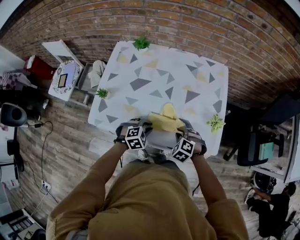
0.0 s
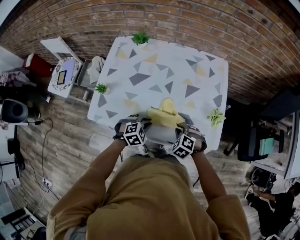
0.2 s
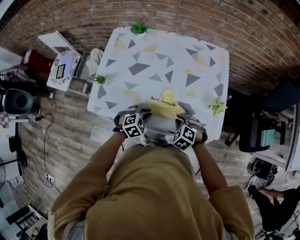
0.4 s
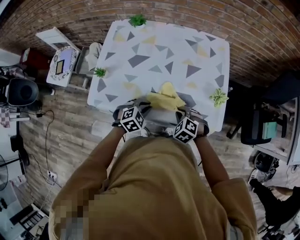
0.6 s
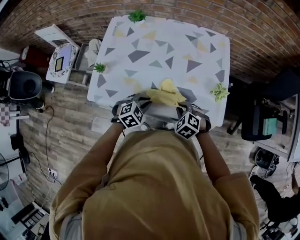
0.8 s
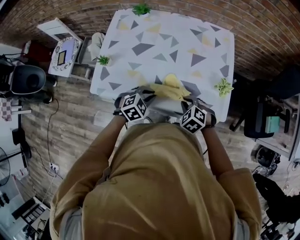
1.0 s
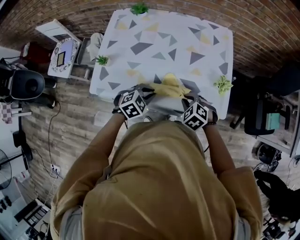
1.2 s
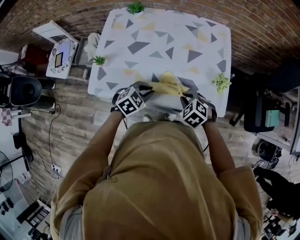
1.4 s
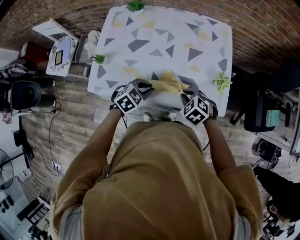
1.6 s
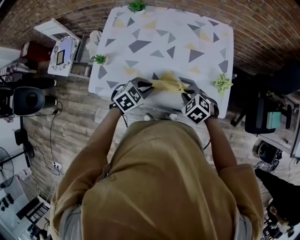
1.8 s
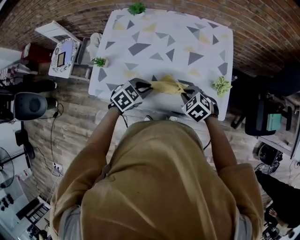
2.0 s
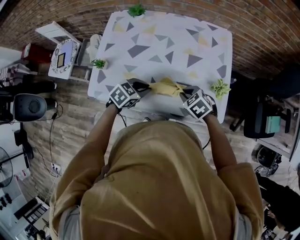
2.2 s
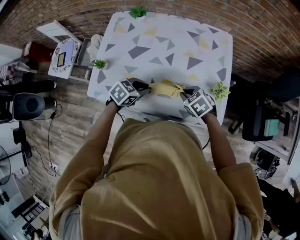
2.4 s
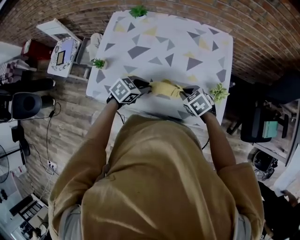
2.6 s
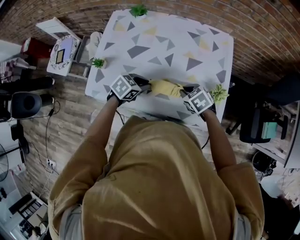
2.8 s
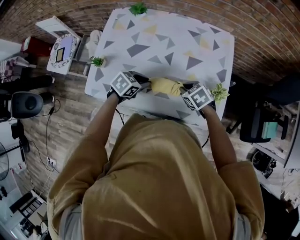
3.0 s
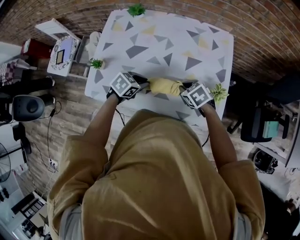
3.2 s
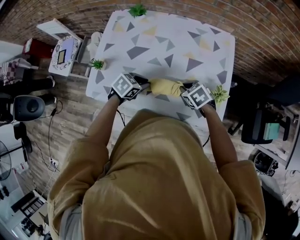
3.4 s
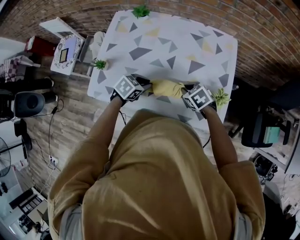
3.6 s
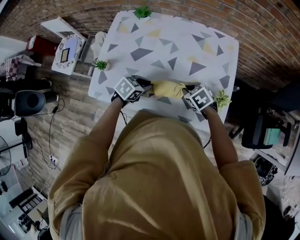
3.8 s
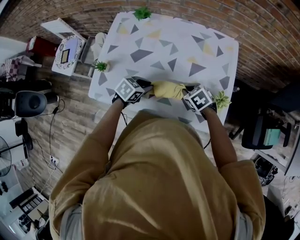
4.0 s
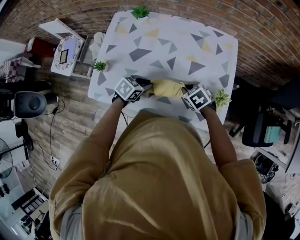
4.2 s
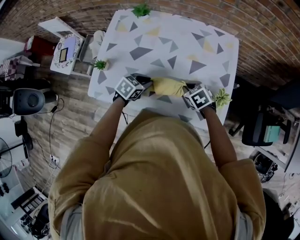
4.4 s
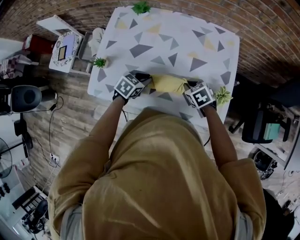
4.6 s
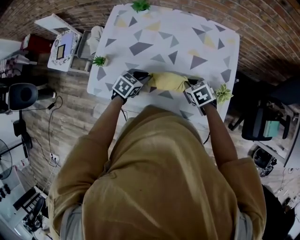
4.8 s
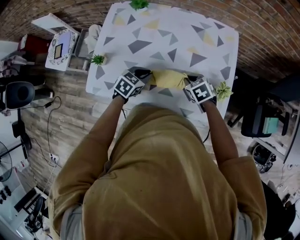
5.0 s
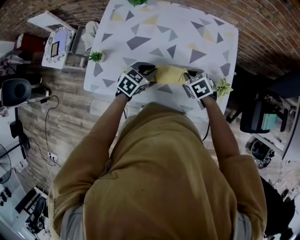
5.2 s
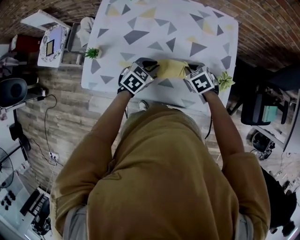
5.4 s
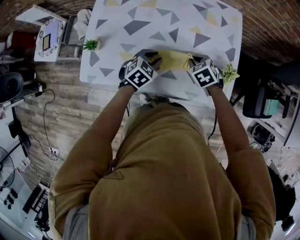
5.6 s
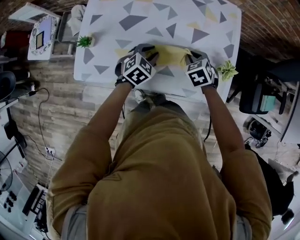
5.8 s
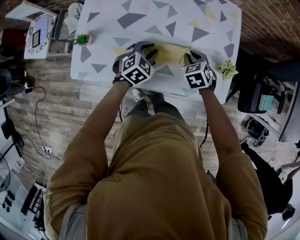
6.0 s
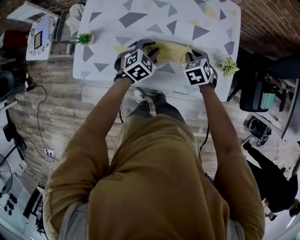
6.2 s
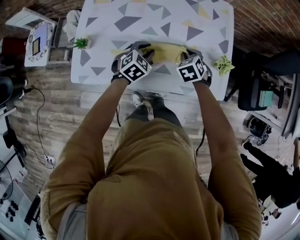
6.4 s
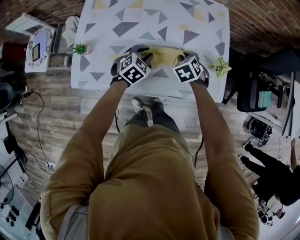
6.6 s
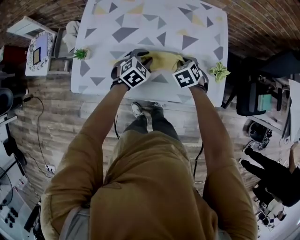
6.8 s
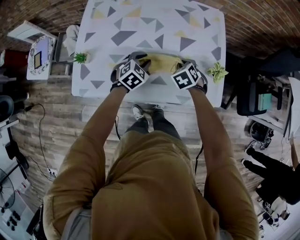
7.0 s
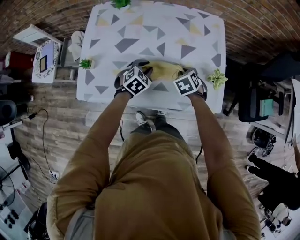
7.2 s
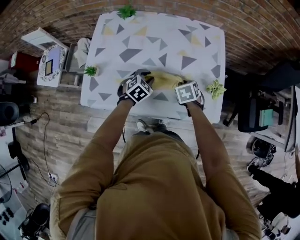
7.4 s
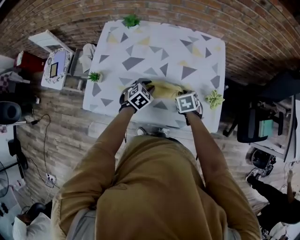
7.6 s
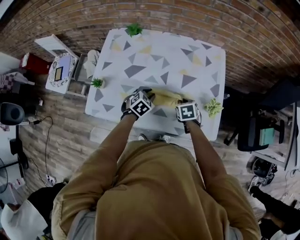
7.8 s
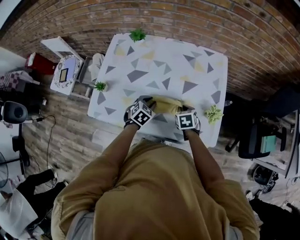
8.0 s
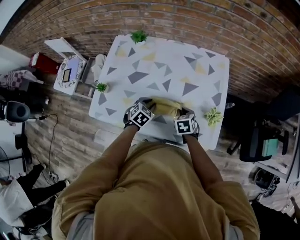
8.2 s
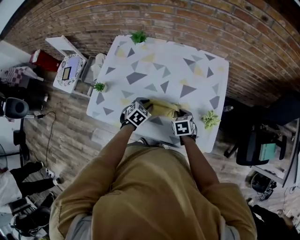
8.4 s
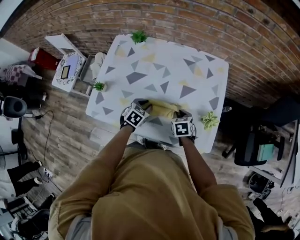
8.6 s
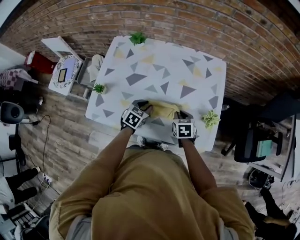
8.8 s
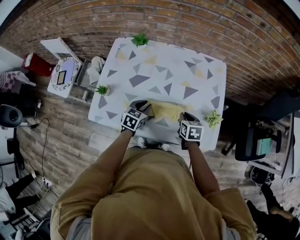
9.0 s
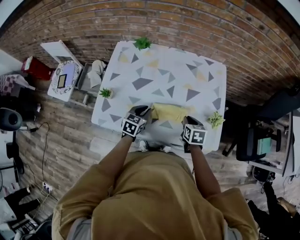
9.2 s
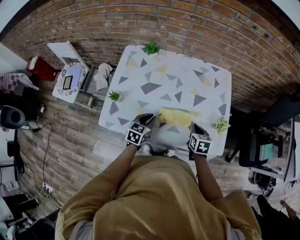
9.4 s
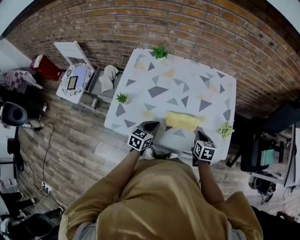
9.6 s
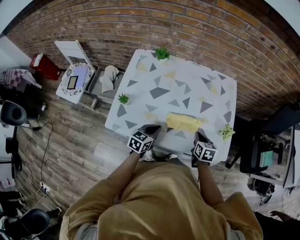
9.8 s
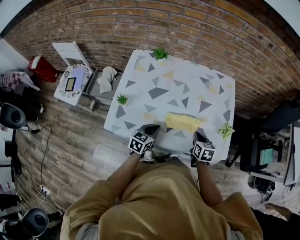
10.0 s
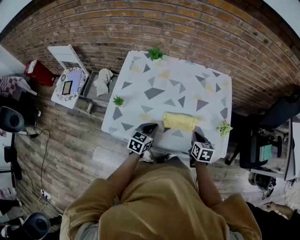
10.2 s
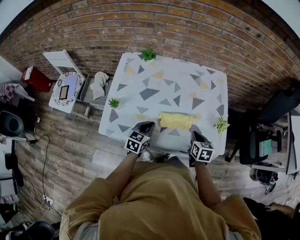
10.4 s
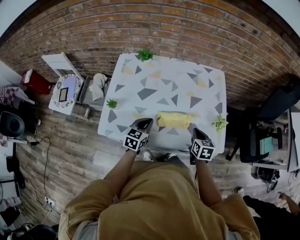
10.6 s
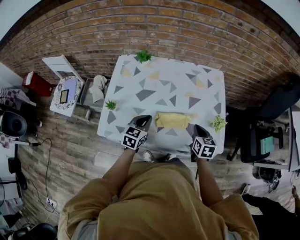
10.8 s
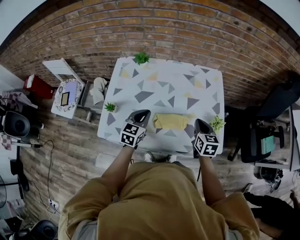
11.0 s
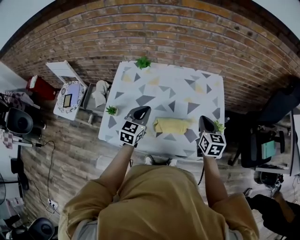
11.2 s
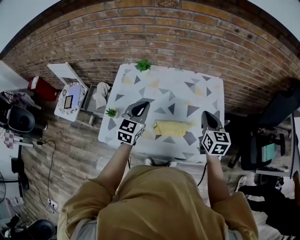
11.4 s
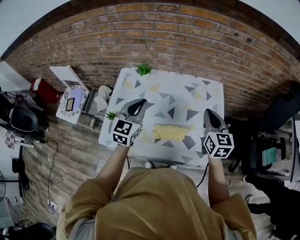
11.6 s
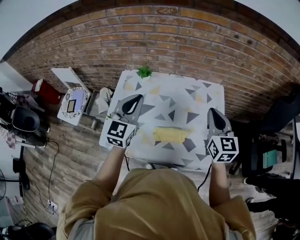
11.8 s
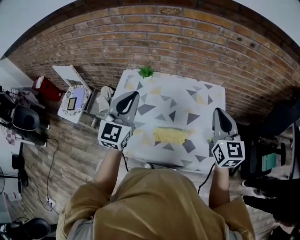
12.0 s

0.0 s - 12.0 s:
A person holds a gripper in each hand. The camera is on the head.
0.0 s - 1.6 s: The left gripper heads upward, covering about 5 cm.
1.6 s - 3.0 s: The two grippers go roughly 10 cm forward.
3.0 s - 4.4 s: The grippers stay close to where they were, moving slightly.
4.4 s - 6.0 s: The right gripper changes its angle by approximately 20 degrees. The left gripper changes its angle by roughly 20 degrees.
6.0 s - 7.6 s: There are only small adjustments of the grippers.
7.6 s - 9.0 s: The right gripper goes some 5 cm upward, and changes its angle by roughly 20 degrees. Meanwhile the left gripper ends up approximately 5 cm from where it was, and changes its angle by roughly 30 degrees.
9.0 s - 10.4 s: The grippers both shift backward by some 5 cm.
10.4 s - 12.0 s: Both grippers travel together upward, approximately 35 cm. The left gripper tips its fingers upward by approximately 30 degrees, while the right gripper tilts its fingers some 40 degrees upward.

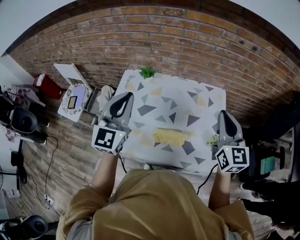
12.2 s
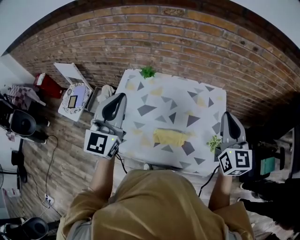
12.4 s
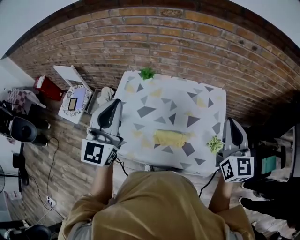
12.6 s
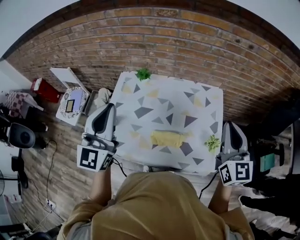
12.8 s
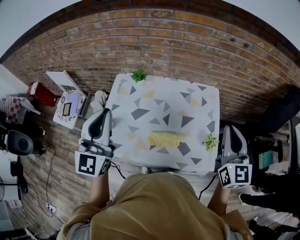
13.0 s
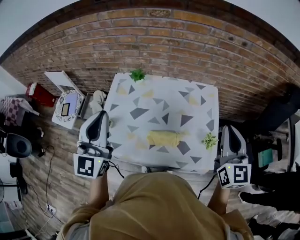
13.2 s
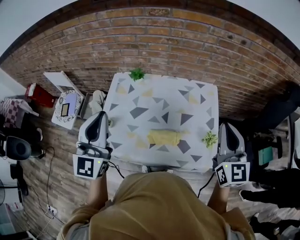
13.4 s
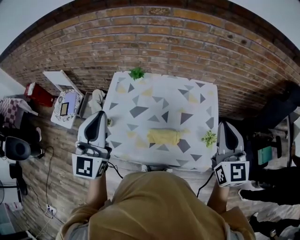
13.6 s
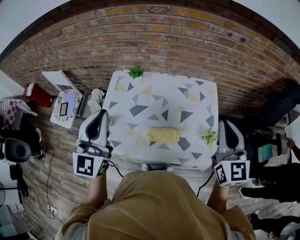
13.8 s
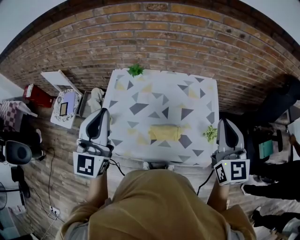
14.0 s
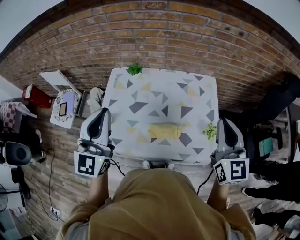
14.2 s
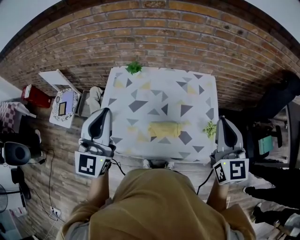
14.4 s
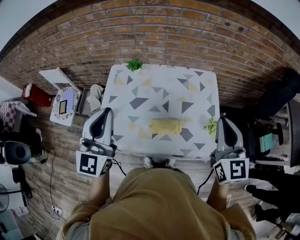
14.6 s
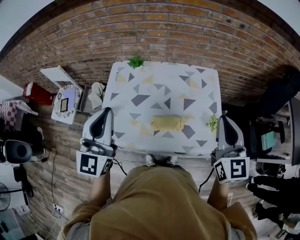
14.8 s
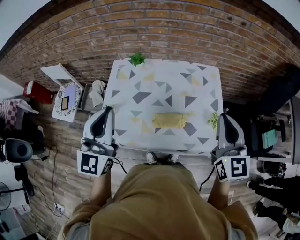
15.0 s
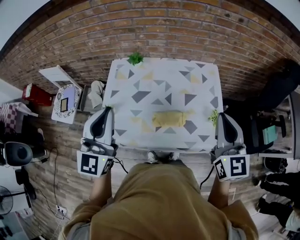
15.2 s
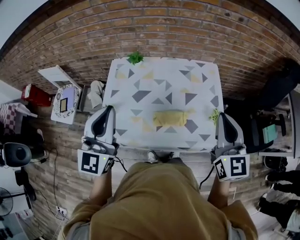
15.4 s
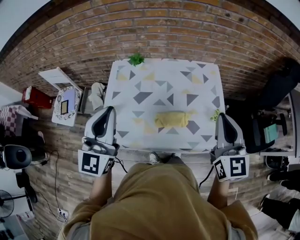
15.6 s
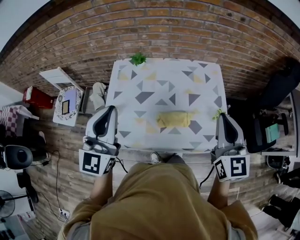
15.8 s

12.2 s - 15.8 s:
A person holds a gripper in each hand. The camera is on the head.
12.2 s - 14.0 s: The grippers both shift backward by approximately 5 cm.
14.0 s - 15.8 s: The right gripper shifts roughly 5 cm backward.

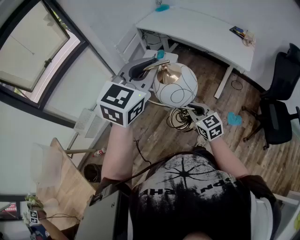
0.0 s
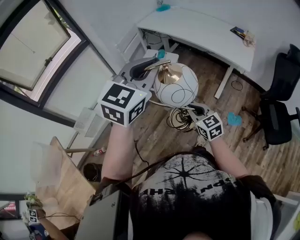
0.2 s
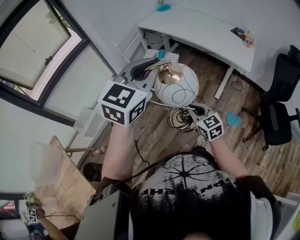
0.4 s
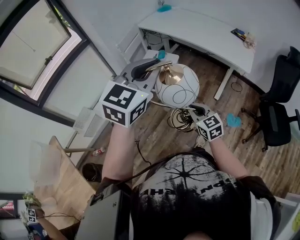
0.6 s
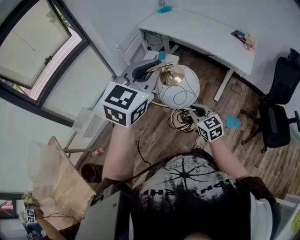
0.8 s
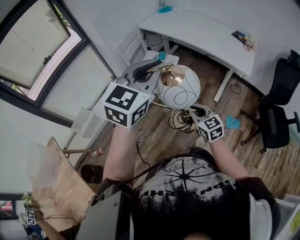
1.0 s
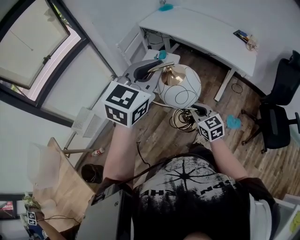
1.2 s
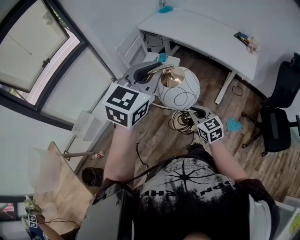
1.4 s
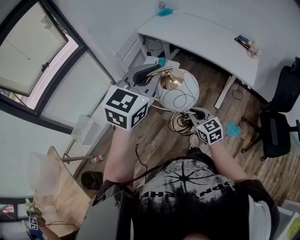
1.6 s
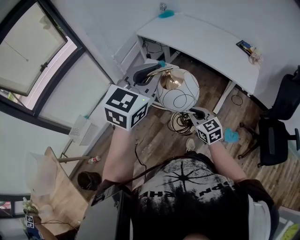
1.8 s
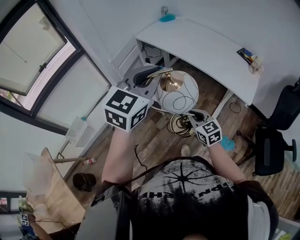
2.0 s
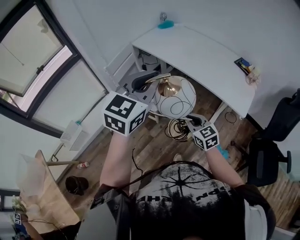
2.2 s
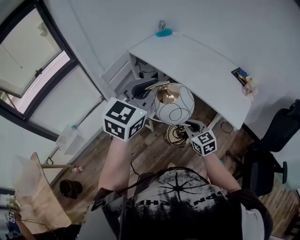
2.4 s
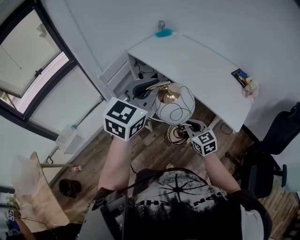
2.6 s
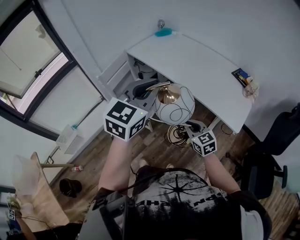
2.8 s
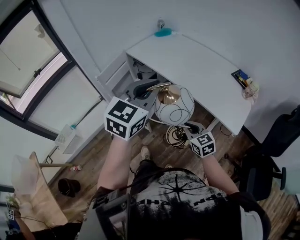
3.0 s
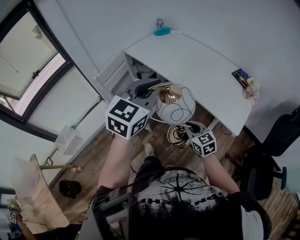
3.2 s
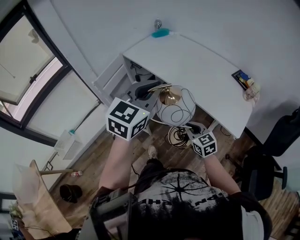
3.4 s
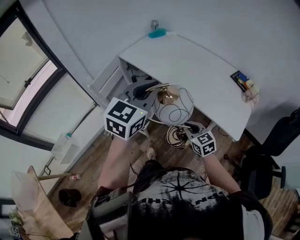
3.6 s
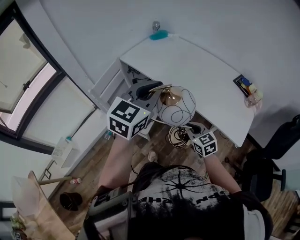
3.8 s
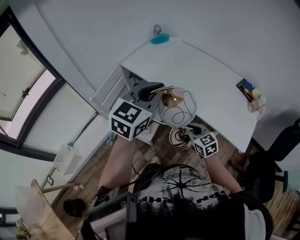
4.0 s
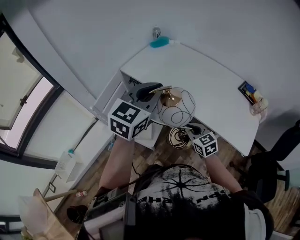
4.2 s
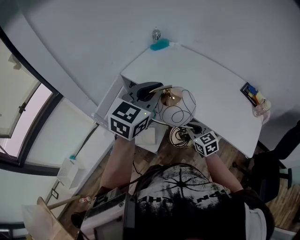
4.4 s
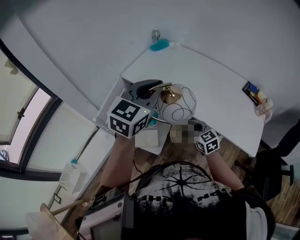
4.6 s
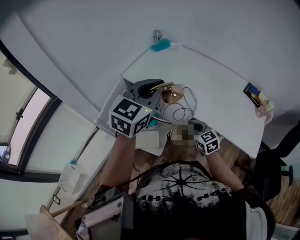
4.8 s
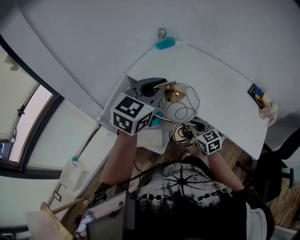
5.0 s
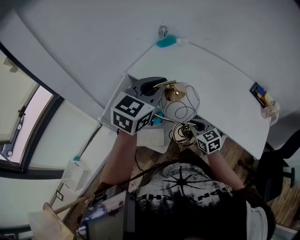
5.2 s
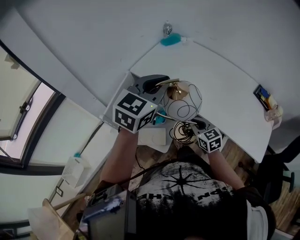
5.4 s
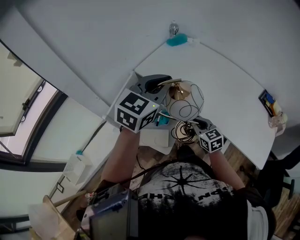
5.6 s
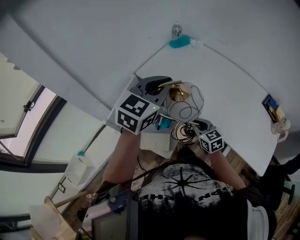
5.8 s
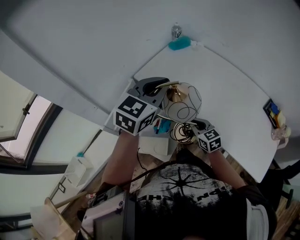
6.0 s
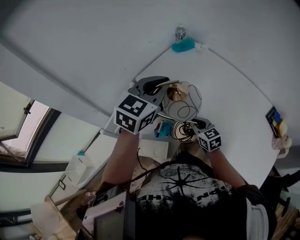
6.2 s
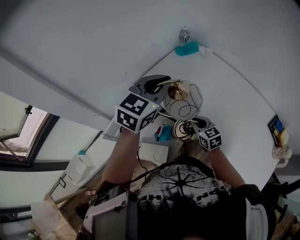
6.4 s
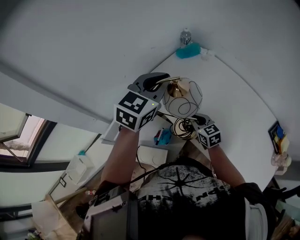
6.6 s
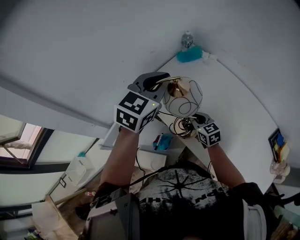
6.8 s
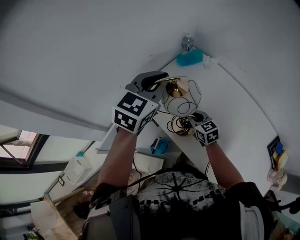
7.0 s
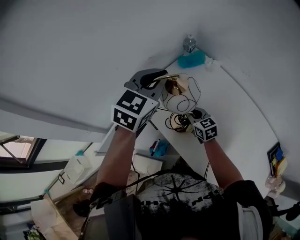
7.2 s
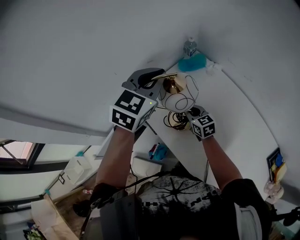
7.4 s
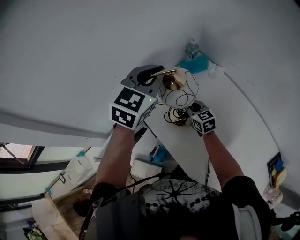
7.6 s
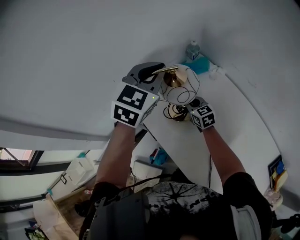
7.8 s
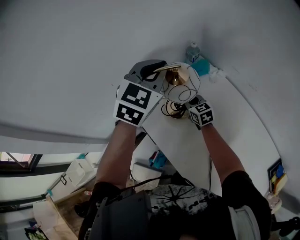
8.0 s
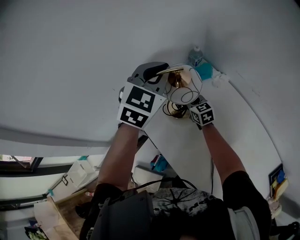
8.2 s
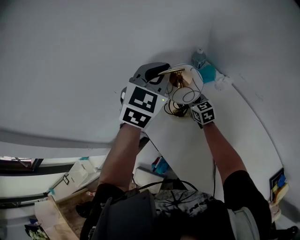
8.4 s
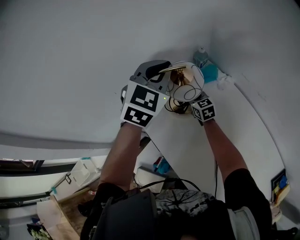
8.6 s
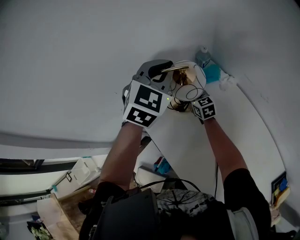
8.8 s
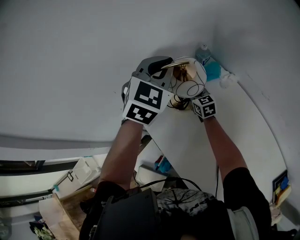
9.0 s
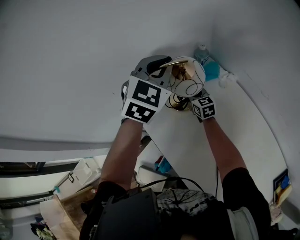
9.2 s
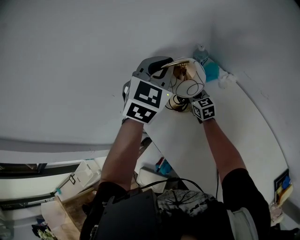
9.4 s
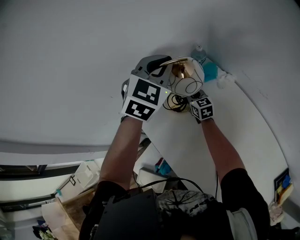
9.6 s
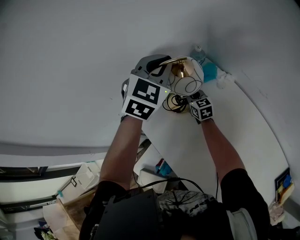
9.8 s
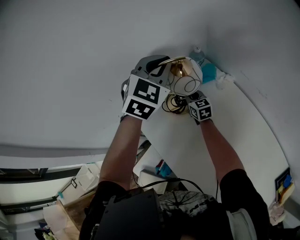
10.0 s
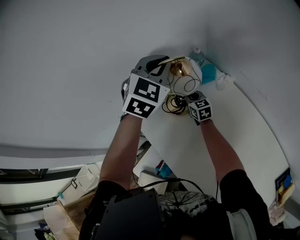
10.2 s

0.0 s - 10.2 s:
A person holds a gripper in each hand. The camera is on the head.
0.0 s - 1.4 s: The right gripper moves some 5 cm; the left gripper is displaced forward by about 5 cm.
1.4 s - 3.0 s: The grippers both shift forward and to the right by about 30 cm.
3.0 s - 4.4 s: Both grippers travel together forward, roughly 25 cm.
4.4 s - 5.8 s: Both grippers move forward and to the left, roughly 15 cm.
5.8 s - 7.2 s: Both grippers move forward, roughly 30 cm.
7.2 s - 8.8 s: The two grippers go about 20 cm forward.
8.8 s - 10.2 s: There are only small adjustments of the grippers.
